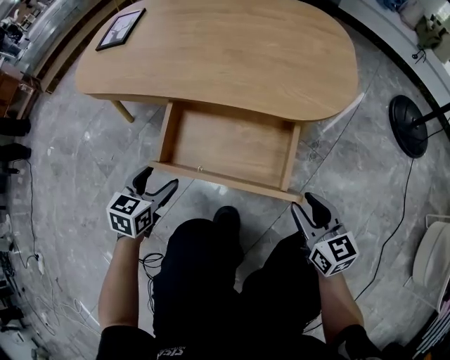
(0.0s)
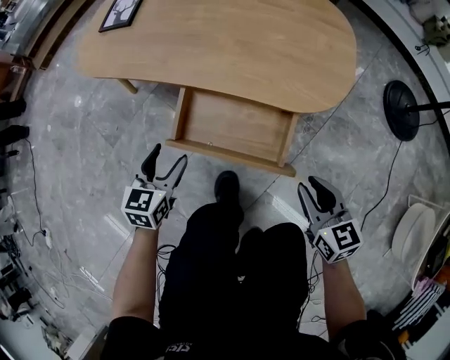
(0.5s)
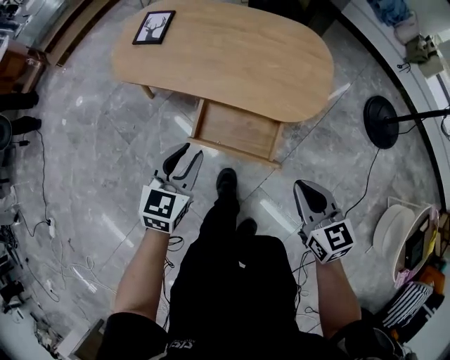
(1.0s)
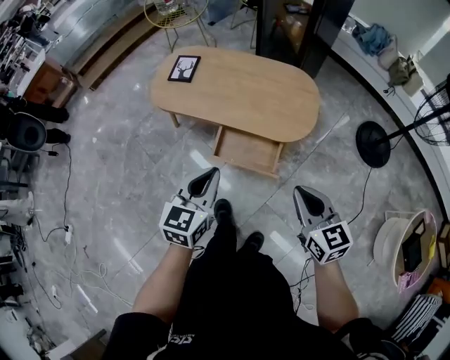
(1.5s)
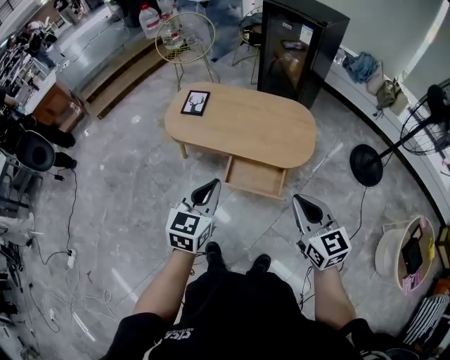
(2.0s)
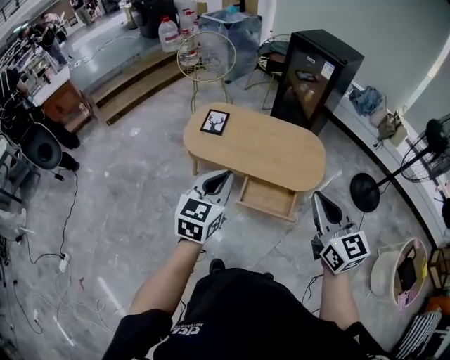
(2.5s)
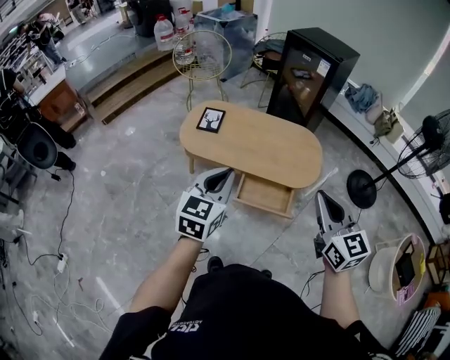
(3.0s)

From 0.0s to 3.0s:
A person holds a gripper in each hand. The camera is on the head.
From 0.0s to 1.5s: The grippers both shift upward by about 50 cm. The right gripper closes. The left gripper closes.
From 1.5s to 3.0s: Both grippers travel together upward and to the left, roughly 25 cm.

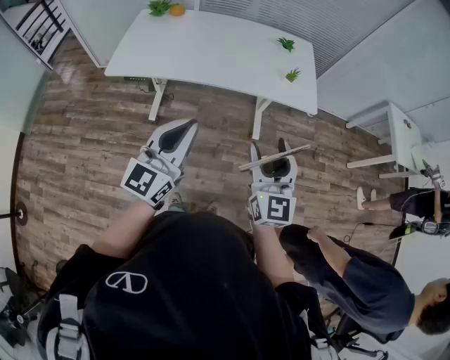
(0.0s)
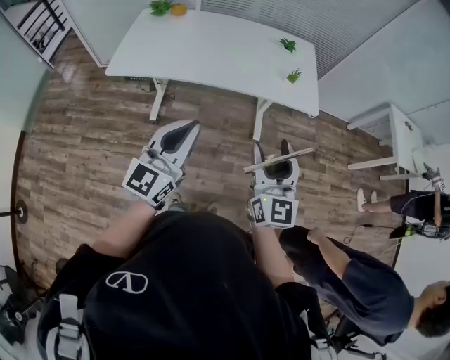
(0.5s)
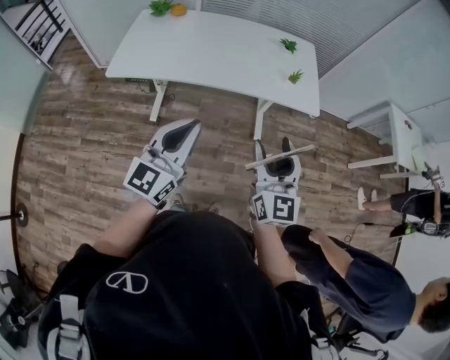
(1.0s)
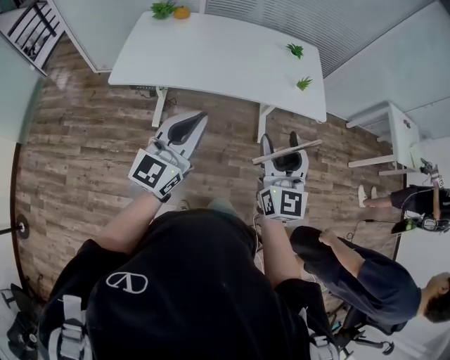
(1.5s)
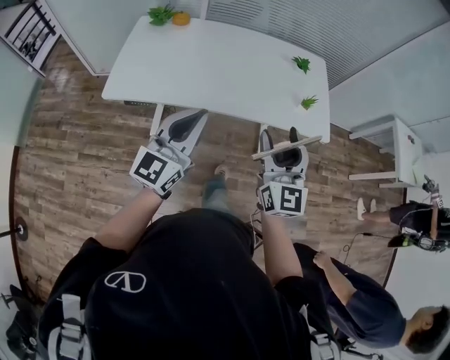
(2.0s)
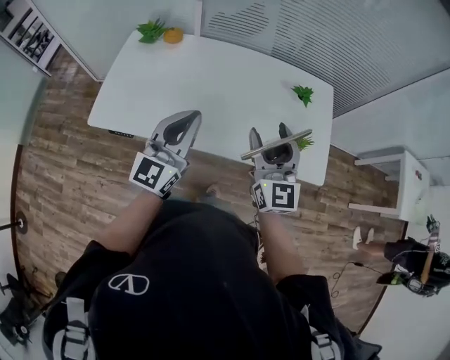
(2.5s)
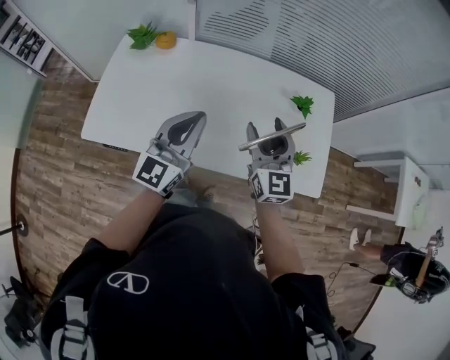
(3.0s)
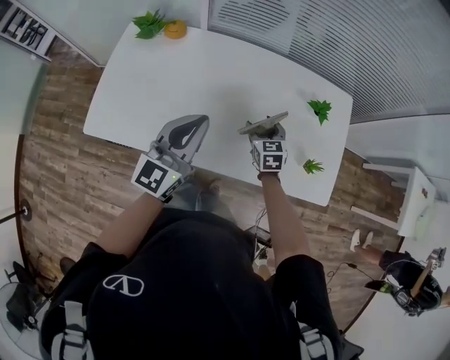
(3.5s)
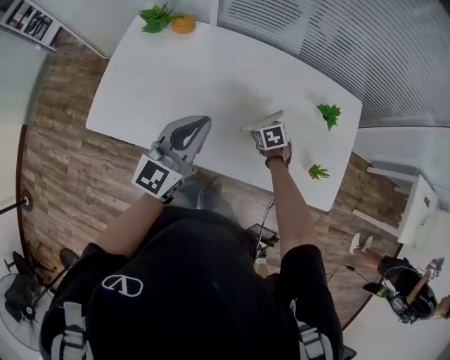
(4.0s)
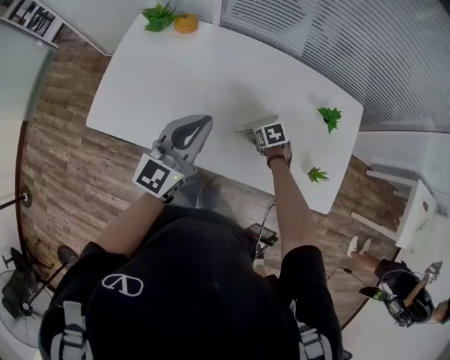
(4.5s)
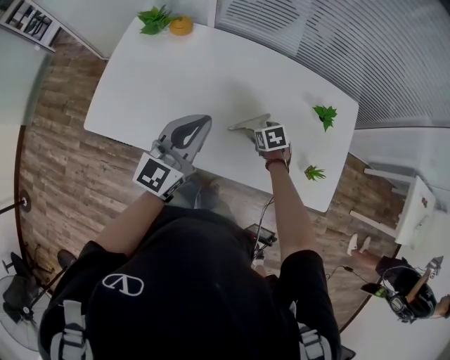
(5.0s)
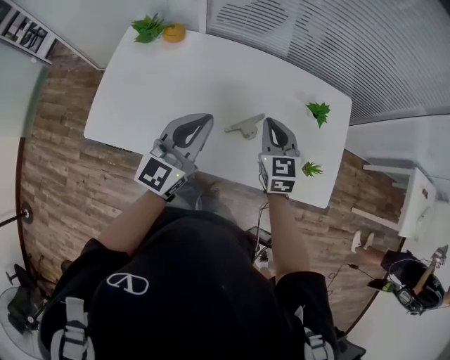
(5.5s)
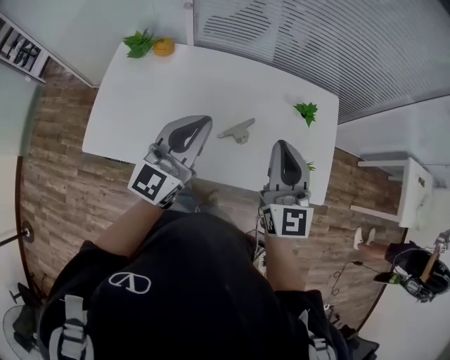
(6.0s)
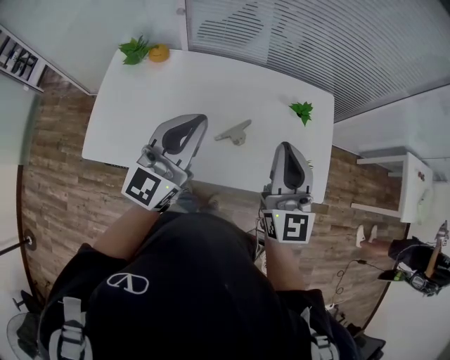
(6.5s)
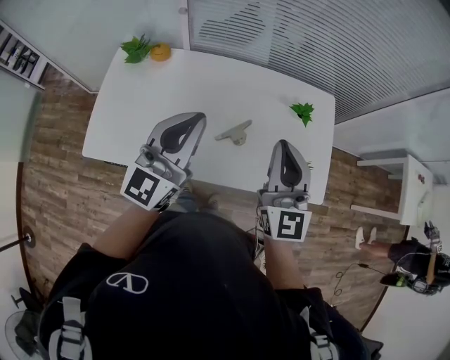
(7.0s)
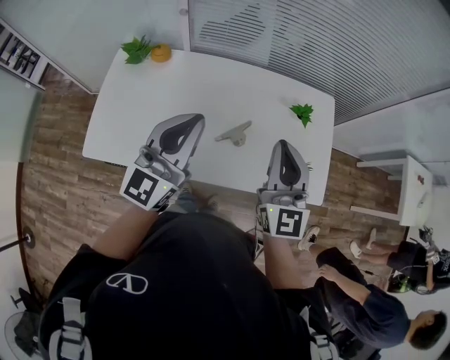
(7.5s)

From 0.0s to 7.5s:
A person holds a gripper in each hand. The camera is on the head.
From 0.0s to 2.0s: The two grippers go some 20 cm forward and to the left.
From 2.0s to 4.0s: The left gripper travels forward by about 35 cm. The right gripper goes about 60 cm forward and downward, and tilts its fingers roughly 70 degrees downward.
From 4.0s to 5.5s: The right gripper shifts approximately 25 cm upward, tips its fingers upward by some 40 degrees, and closes up.
From 5.5s to 7.5s: The right gripper heads upward and backward, covering approximately 20 cm, and tips its fingers upward by approximately 30 degrees. The left gripper goes roughly 10 cm upward.

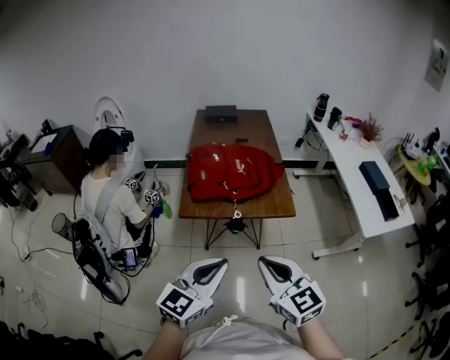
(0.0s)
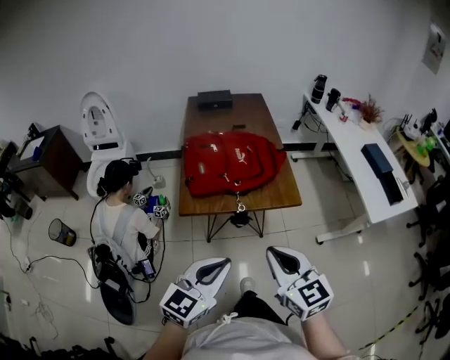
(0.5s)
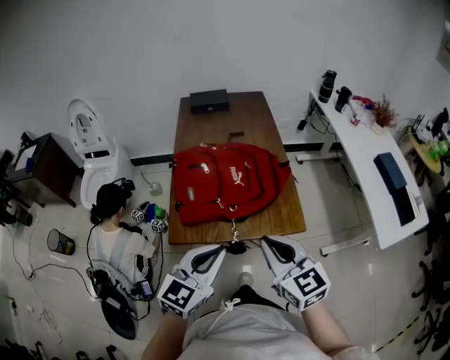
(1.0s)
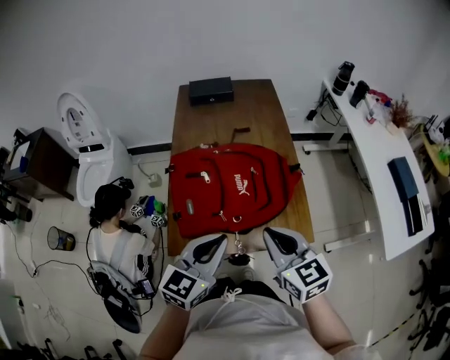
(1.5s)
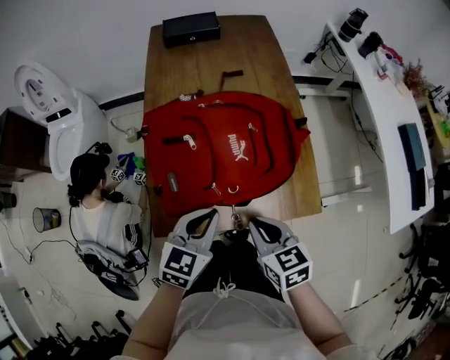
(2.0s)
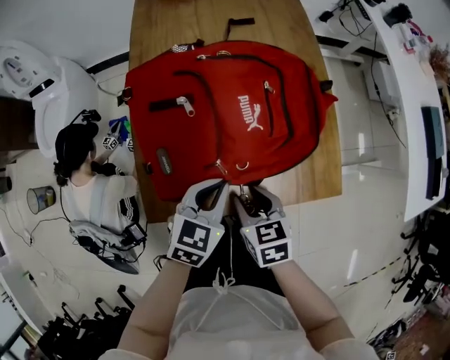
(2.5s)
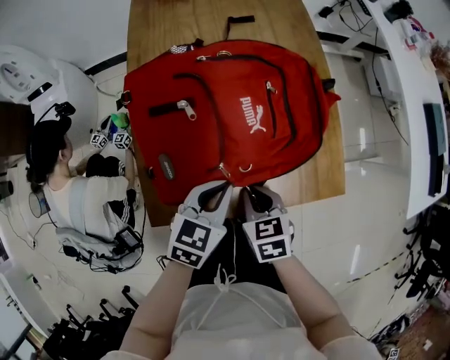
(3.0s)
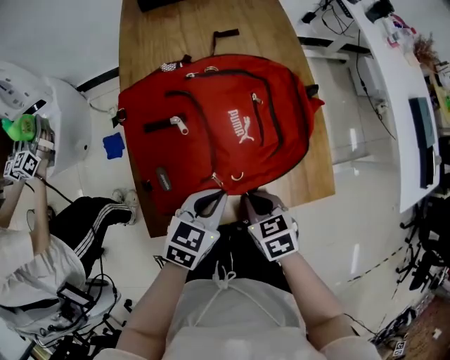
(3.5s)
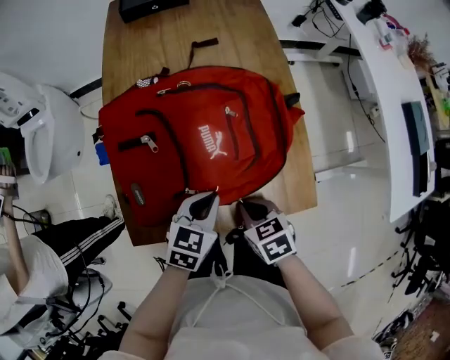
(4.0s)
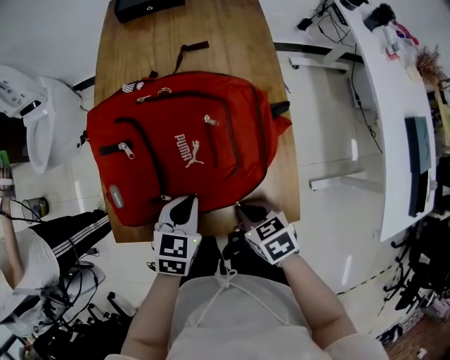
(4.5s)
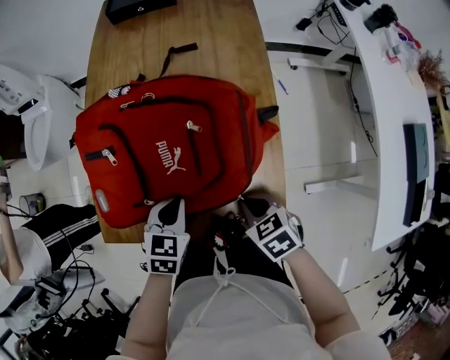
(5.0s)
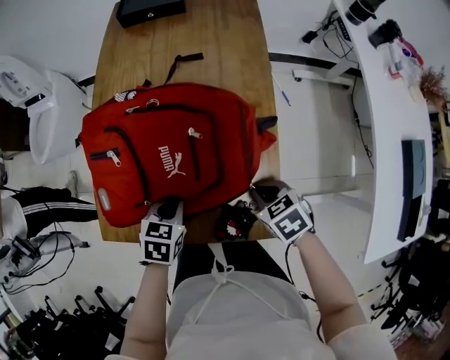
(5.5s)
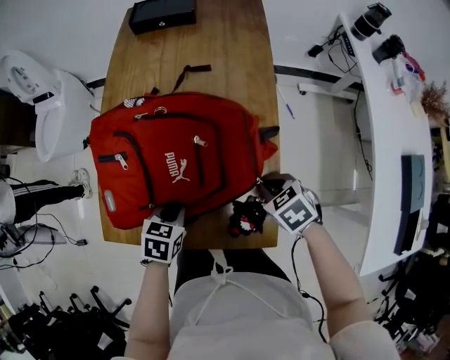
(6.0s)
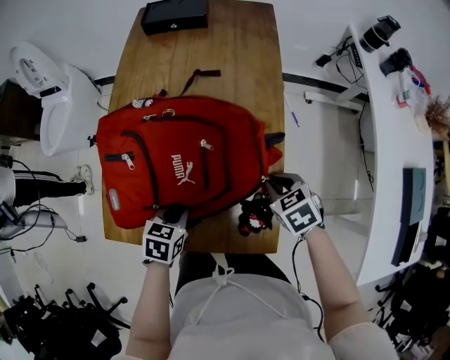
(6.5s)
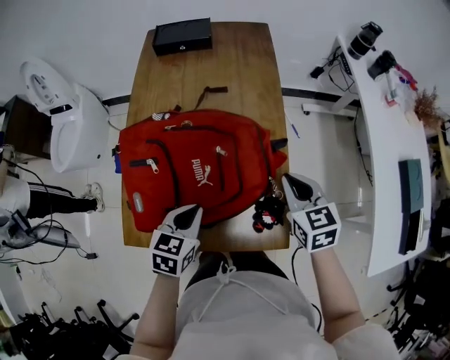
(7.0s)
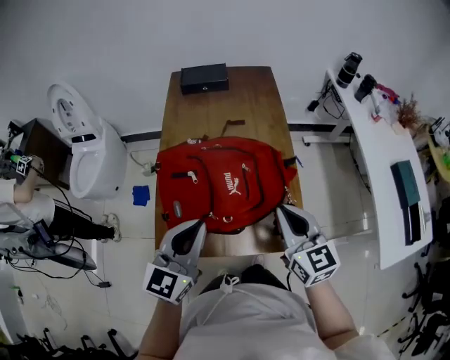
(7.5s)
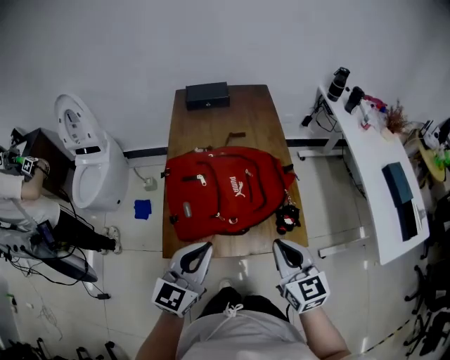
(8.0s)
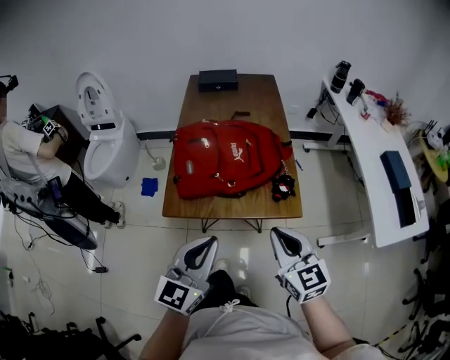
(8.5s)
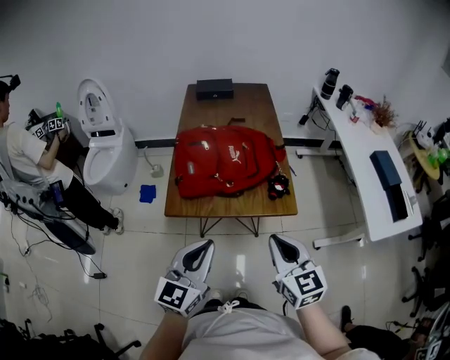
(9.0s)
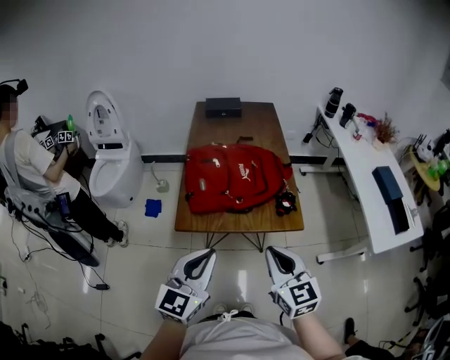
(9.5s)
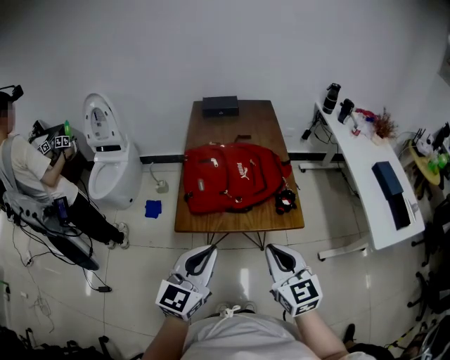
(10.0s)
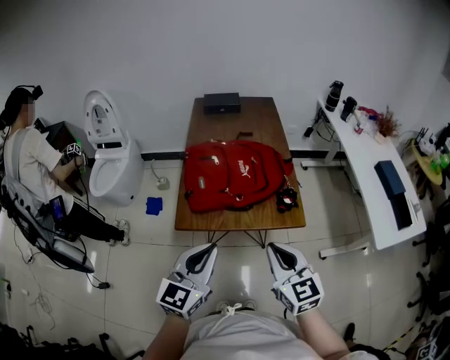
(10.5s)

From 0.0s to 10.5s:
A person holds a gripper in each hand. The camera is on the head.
From 0.0s to 2.0s: The grippers both shift forward and downward by some 40 cm. The right gripper turns by about 30 degrees. The left gripper rotates approximately 20 degrees.
From 2.0s to 4.0s: The right gripper heads downward, covering some 15 cm, and opens, then closes once more; the left gripper is displaced downward and to the right by about 15 cm.
From 4.0s to 6.5s: The right gripper heads to the right and forward, covering roughly 25 cm, and turns by roughly 20 degrees, while the left gripper shifts by roughly 5 cm, and rotates roughly 30 degrees.
From 6.5s to 8.5s: The left gripper heads upward and backward, covering about 40 cm, and points its fingers some 50 degrees further upward; the right gripper heads backward and upward, covering some 40 cm, and angles its fingers upward, by roughly 50 degrees.
From 8.5s to 10.5s: The right gripper ends up approximately 5 cm from where it was.

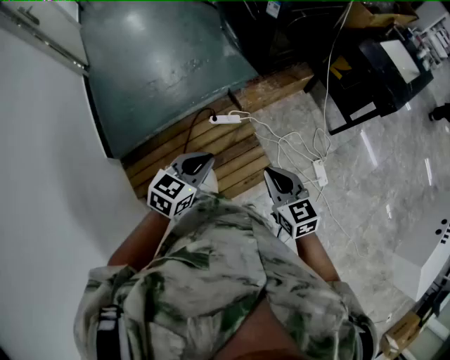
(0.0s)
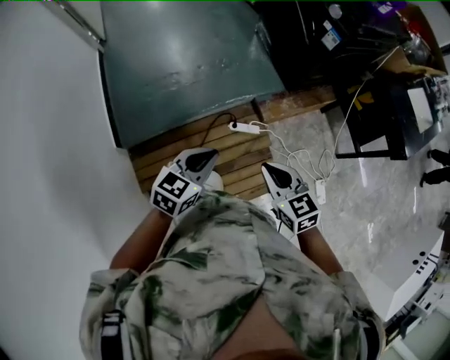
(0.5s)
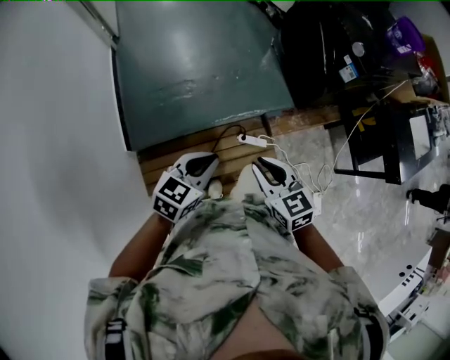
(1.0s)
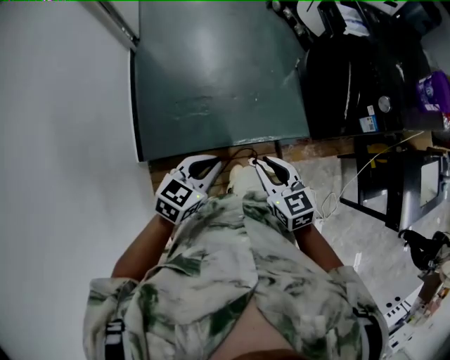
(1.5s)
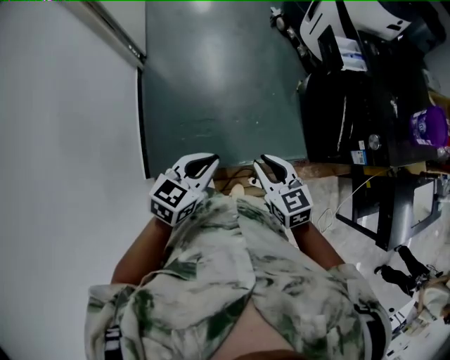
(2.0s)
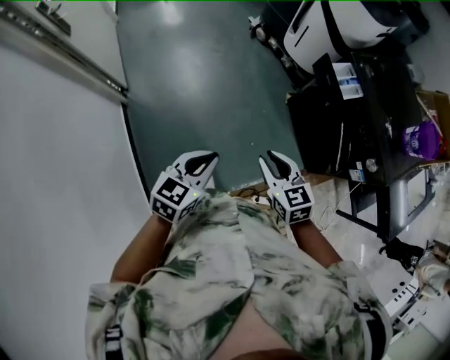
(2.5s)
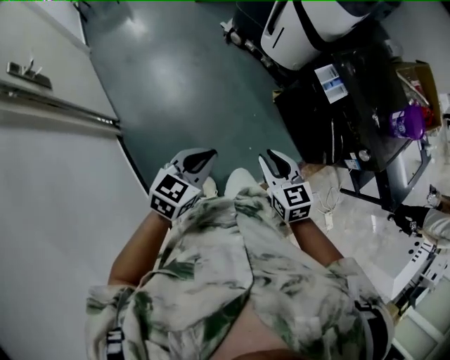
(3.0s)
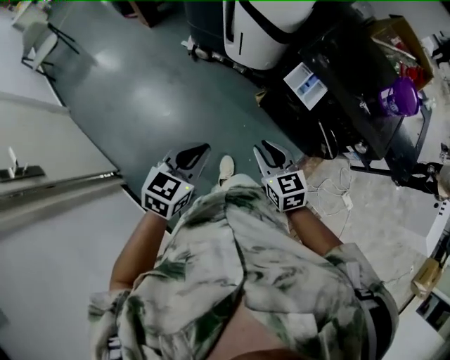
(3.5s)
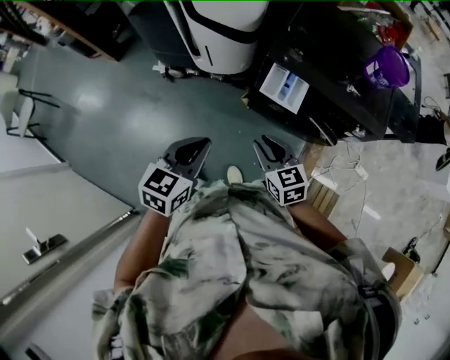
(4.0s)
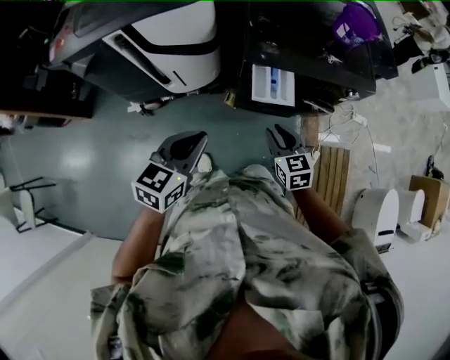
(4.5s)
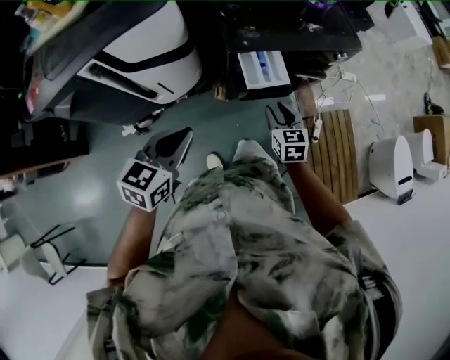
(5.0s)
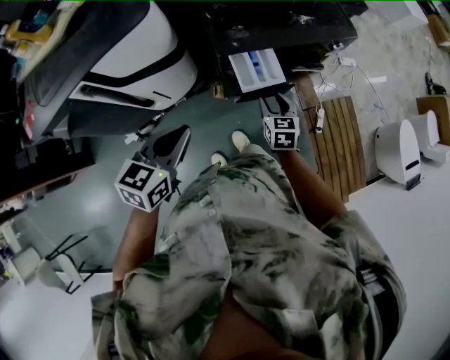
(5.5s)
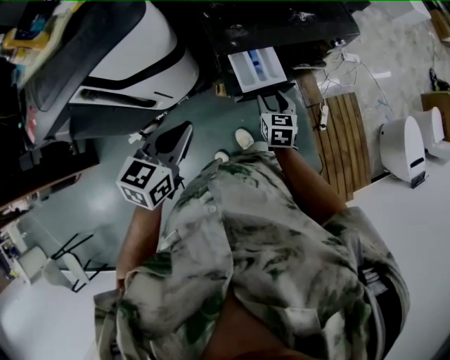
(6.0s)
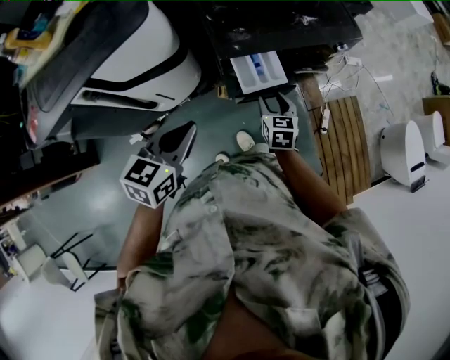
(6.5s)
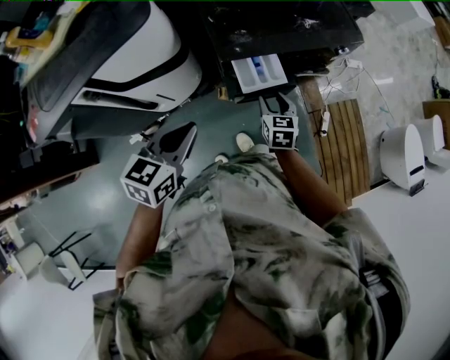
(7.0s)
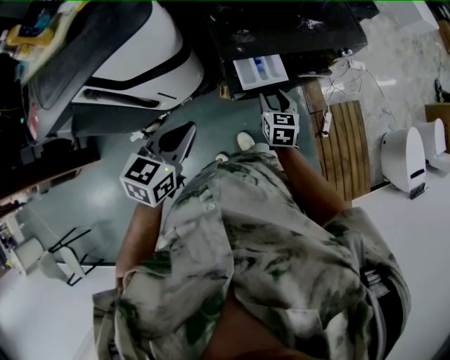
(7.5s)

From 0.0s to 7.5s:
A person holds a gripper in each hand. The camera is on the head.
From 0.0s to 2.0s: Both grippers are carried forward and to the left, some 70 cm. The left gripper moves upward, about 20 cm, and changes its angle by roughly 20 degrees; the right gripper changes its angle by approximately 20 degrees.
From 2.0s to 4.0s: The pair of grippers is taken about 60 cm. The right gripper changes its angle by roughly 60 degrees; the left gripper changes its angle by approximately 50 degrees.
From 4.0s to 5.5s: The right gripper moves roughly 20 cm, rotates about 60 degrees, and opens. The left gripper shifts by about 25 cm, and swivels some 40 degrees.
From 5.5s to 7.5s: The grippers make only small movements.
